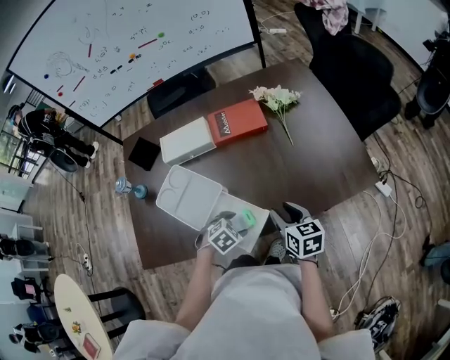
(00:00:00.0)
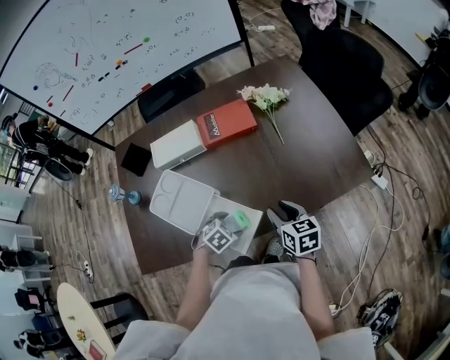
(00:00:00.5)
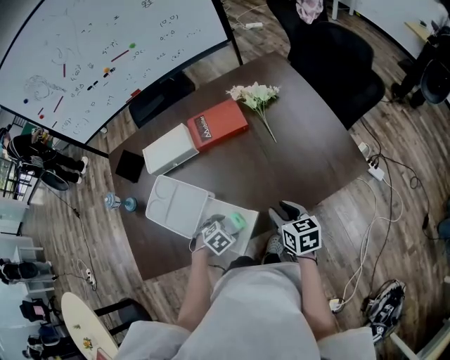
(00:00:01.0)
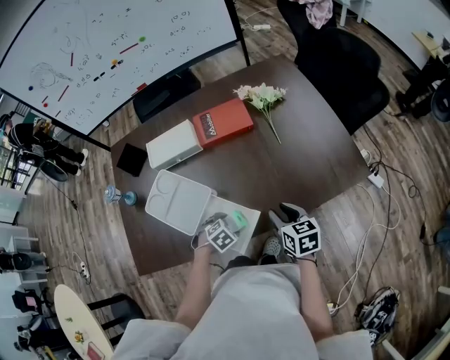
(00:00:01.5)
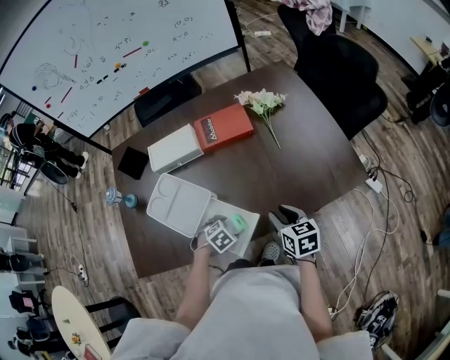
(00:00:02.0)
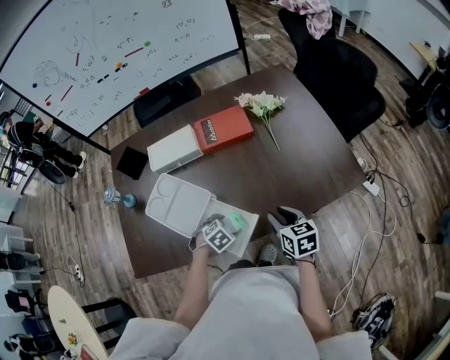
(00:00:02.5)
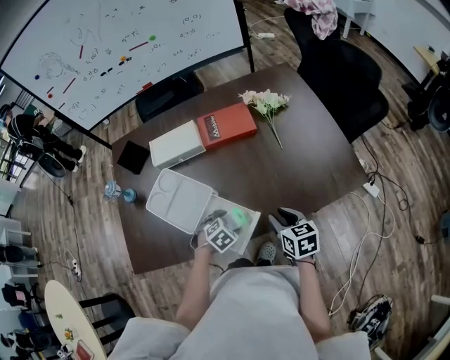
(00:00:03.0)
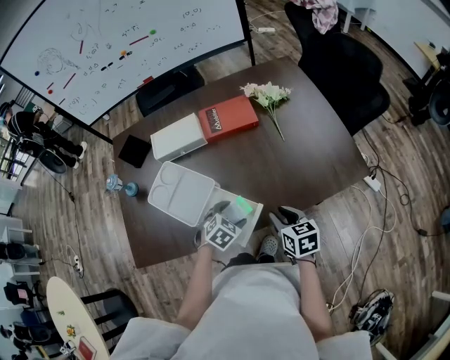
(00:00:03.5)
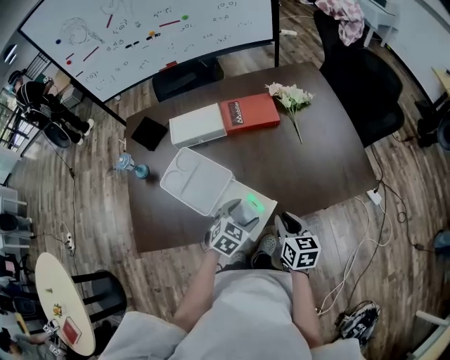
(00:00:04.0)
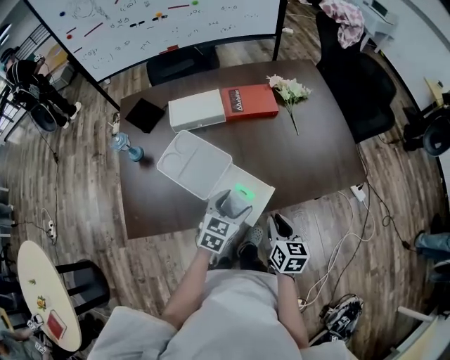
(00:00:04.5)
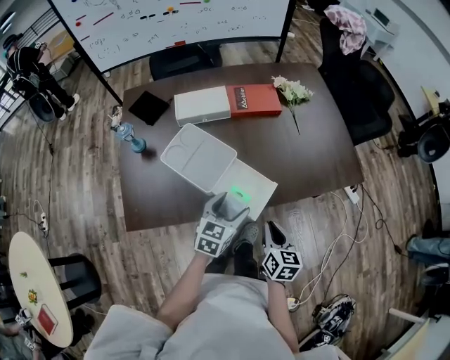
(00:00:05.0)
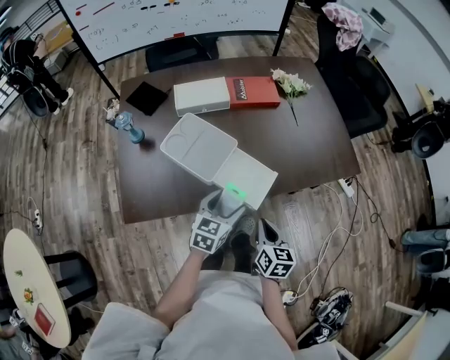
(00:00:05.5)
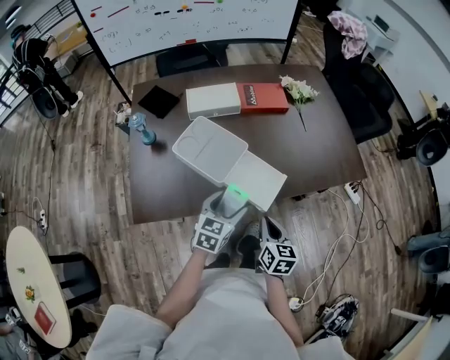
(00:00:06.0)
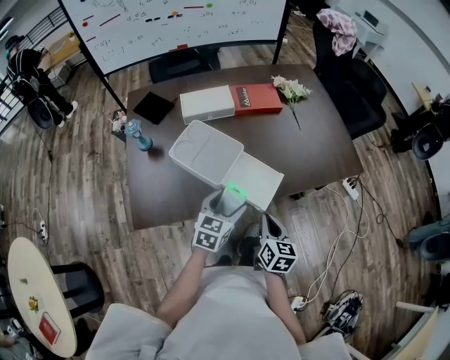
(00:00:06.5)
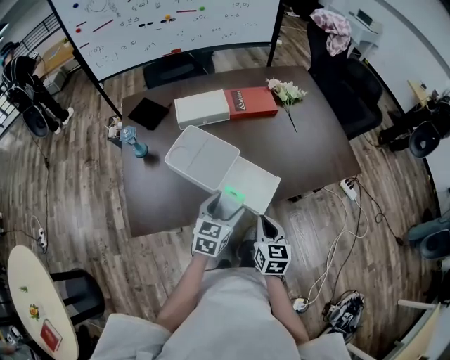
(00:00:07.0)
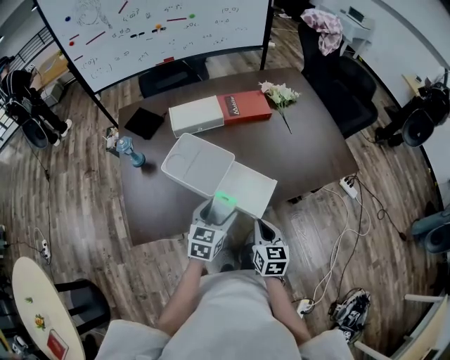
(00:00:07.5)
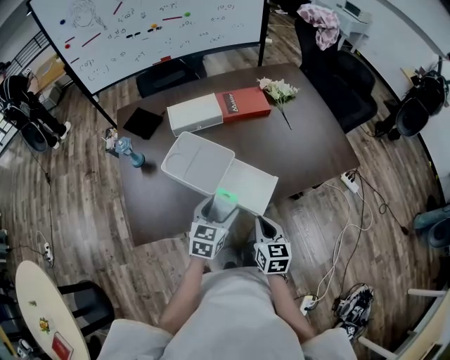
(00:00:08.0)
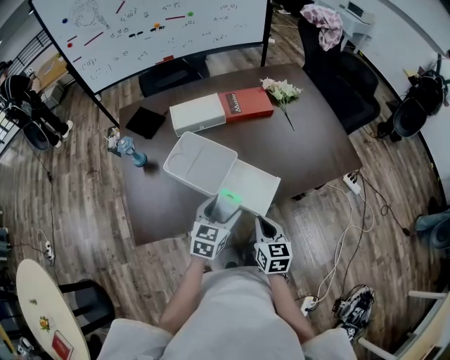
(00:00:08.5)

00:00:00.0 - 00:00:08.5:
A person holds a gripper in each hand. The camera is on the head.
00:00:00.0 - 00:00:02.0: There are only small adjustments of the grippers.
00:00:02.0 - 00:00:04.0: The left gripper moves upward, some 10 cm, and changes its angle by some 30 degrees. Meanwhile the right gripper changes place by about 10 cm.
00:00:04.0 - 00:00:06.5: The right gripper moves backward and to the left, some 15 cm, while the left gripper shifts some 15 cm backward, to the left and upward, and rotates about 30 degrees.
00:00:06.5 - 00:00:08.5: The grippers move only a little.

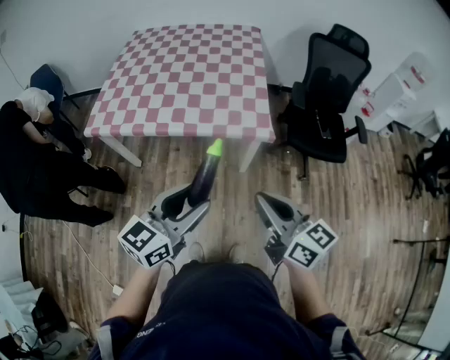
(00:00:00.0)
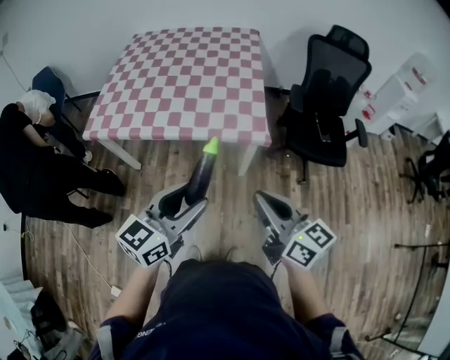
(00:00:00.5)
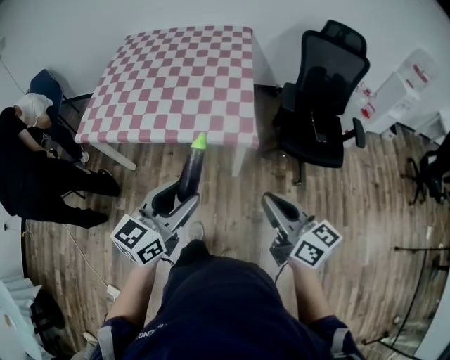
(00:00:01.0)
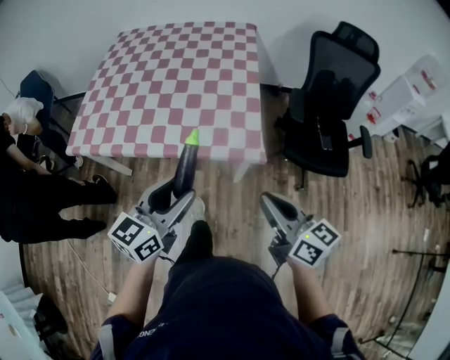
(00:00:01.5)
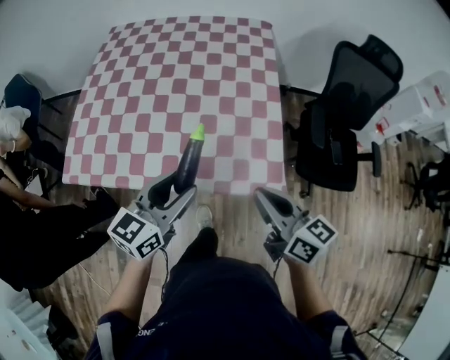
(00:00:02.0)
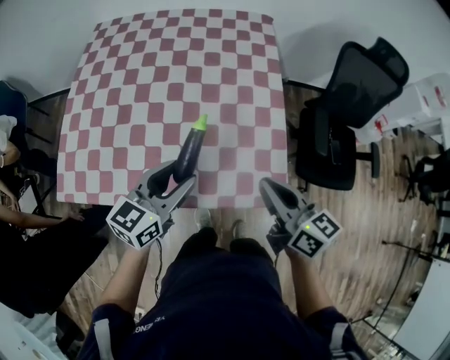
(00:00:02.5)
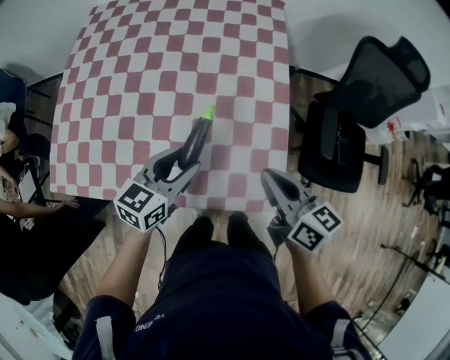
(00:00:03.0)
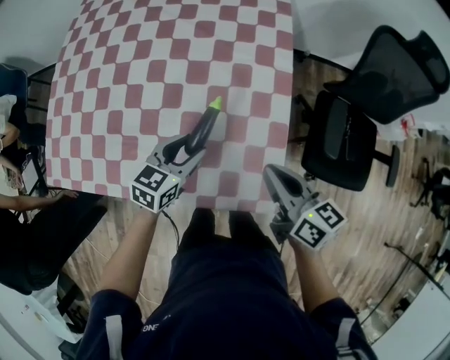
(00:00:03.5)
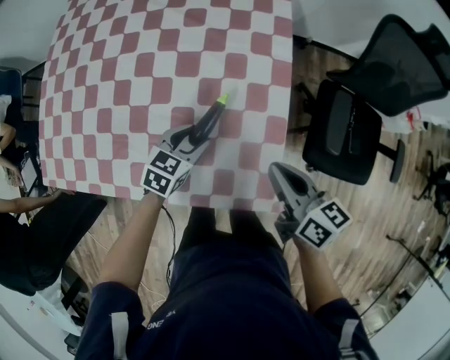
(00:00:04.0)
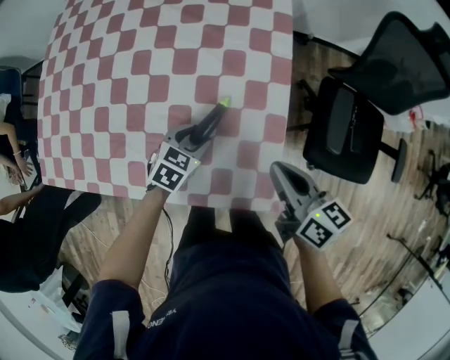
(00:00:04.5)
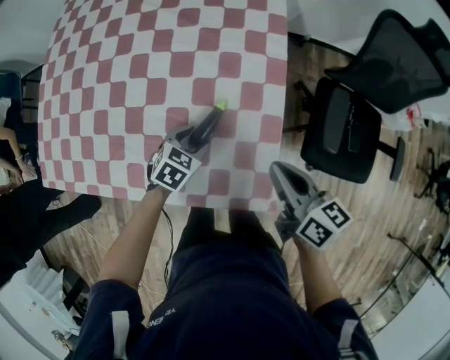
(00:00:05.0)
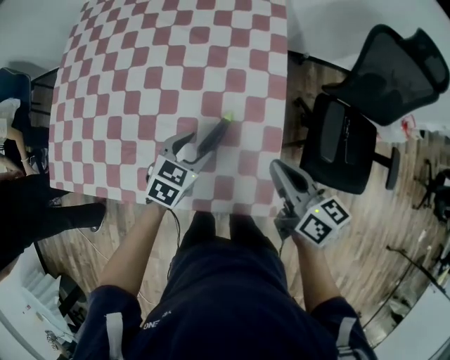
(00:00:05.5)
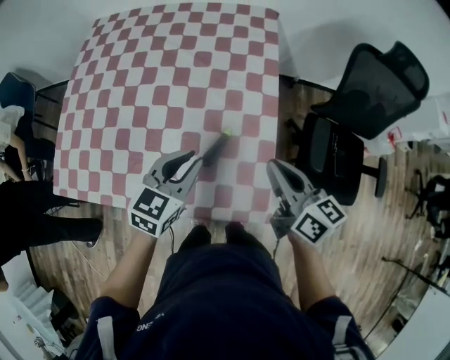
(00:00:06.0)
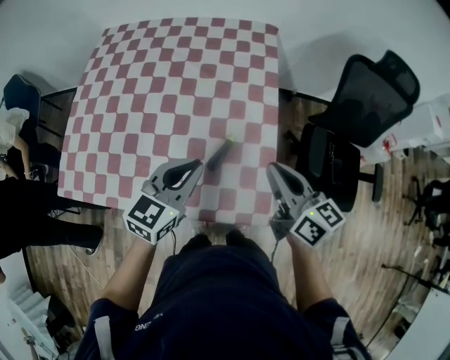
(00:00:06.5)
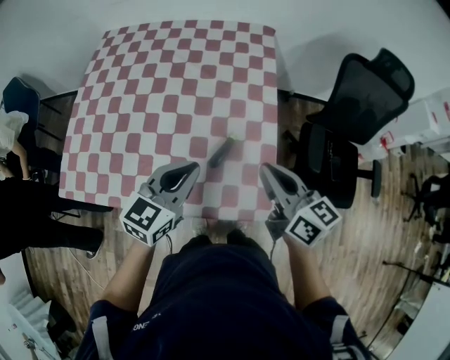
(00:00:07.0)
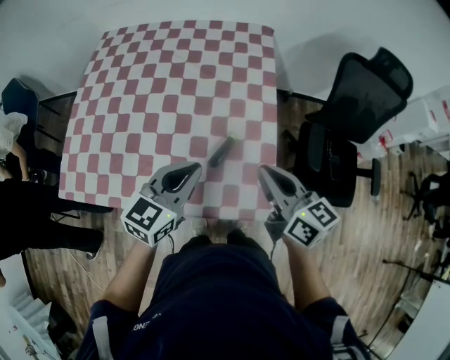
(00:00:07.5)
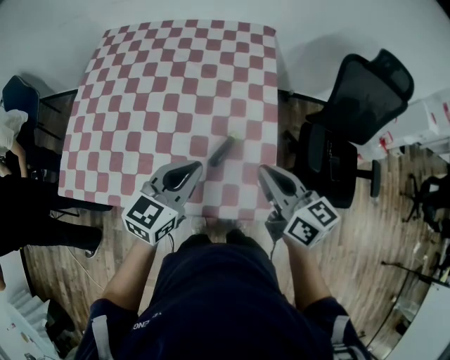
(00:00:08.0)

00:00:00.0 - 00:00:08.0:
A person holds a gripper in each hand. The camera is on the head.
00:00:00.0 - 00:00:02.0: Both grippers travel together forward, about 35 cm.
00:00:02.0 - 00:00:04.0: The right gripper travels forward, downward and to the right by approximately 25 cm; the left gripper travels downward and forward by some 35 cm, and angles its fingers downward, by about 30 degrees.
00:00:04.0 - 00:00:06.0: The right gripper travels upward by some 10 cm; the left gripper travels upward by approximately 20 cm, and closes up.
00:00:06.0 - 00:00:08.0: The left gripper is displaced upward by roughly 5 cm. Meanwhile the right gripper heads to the left, covering roughly 5 cm.

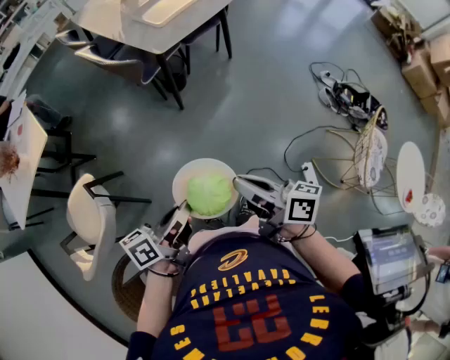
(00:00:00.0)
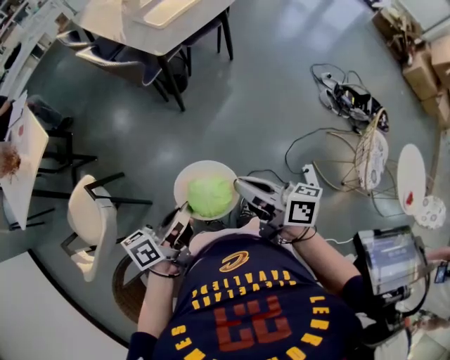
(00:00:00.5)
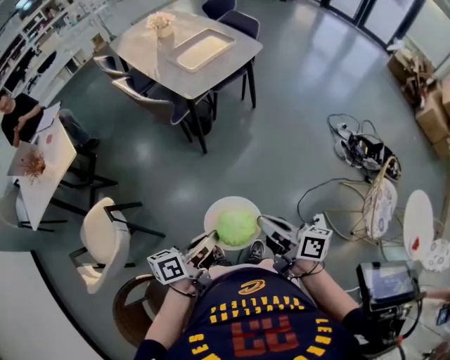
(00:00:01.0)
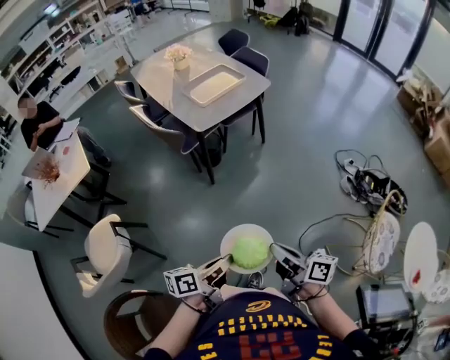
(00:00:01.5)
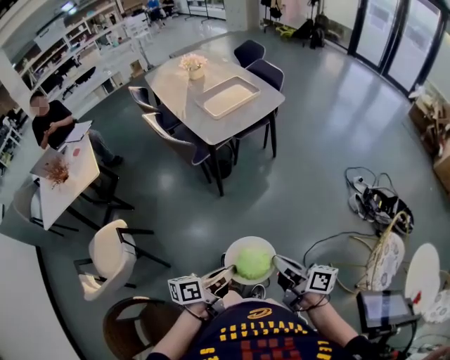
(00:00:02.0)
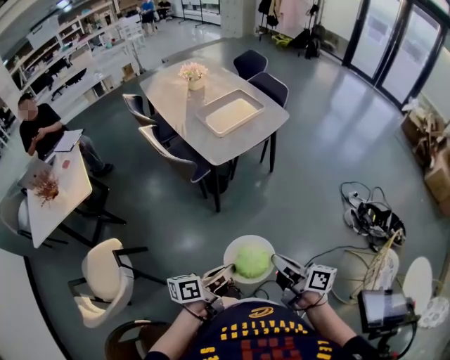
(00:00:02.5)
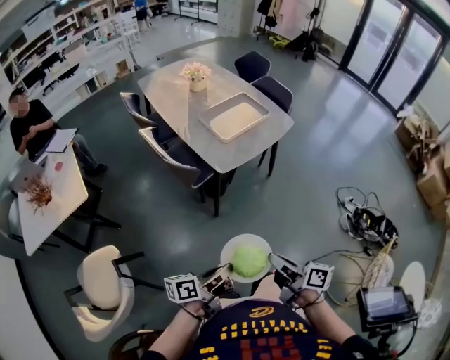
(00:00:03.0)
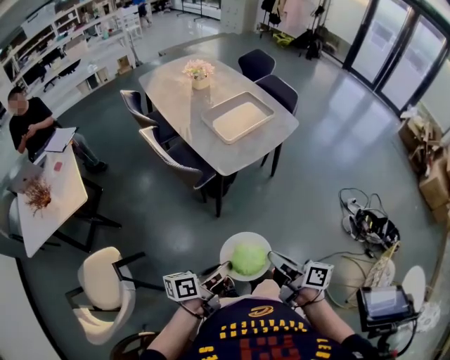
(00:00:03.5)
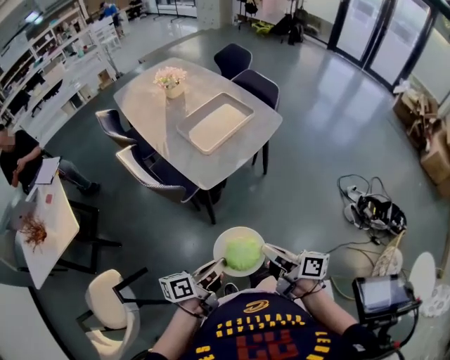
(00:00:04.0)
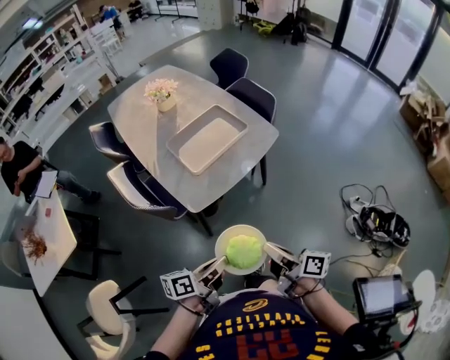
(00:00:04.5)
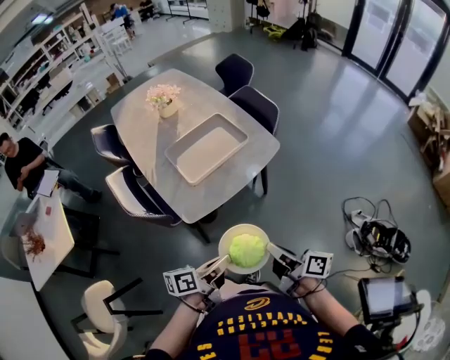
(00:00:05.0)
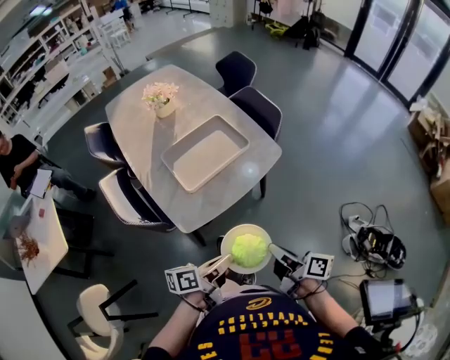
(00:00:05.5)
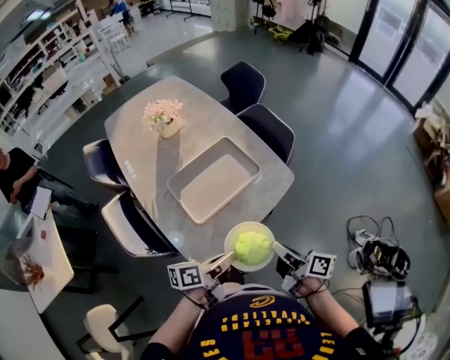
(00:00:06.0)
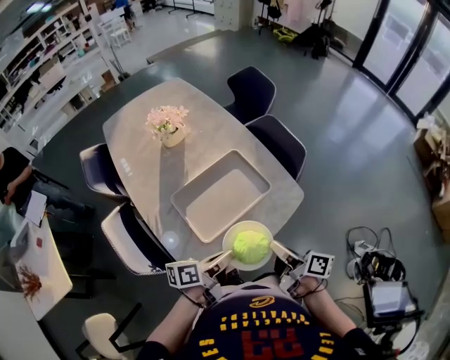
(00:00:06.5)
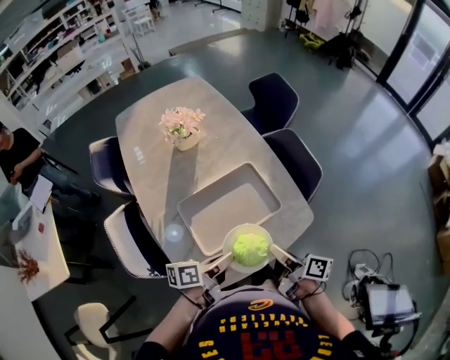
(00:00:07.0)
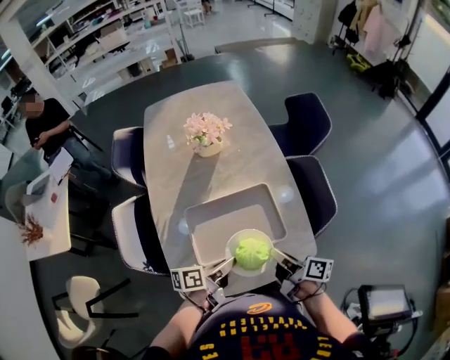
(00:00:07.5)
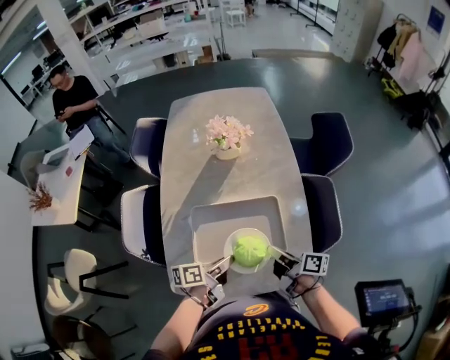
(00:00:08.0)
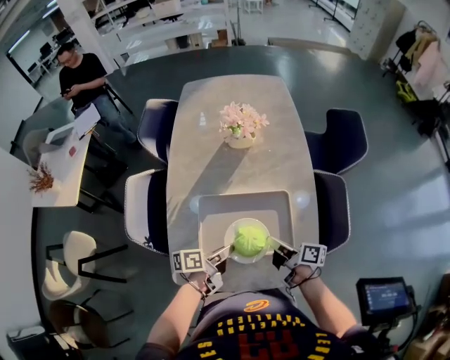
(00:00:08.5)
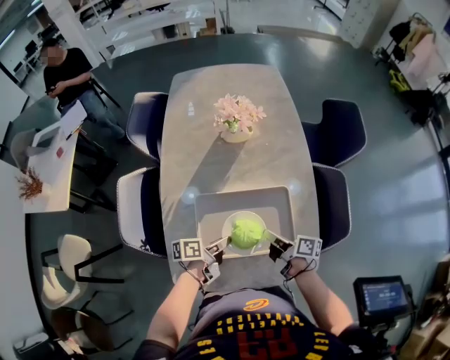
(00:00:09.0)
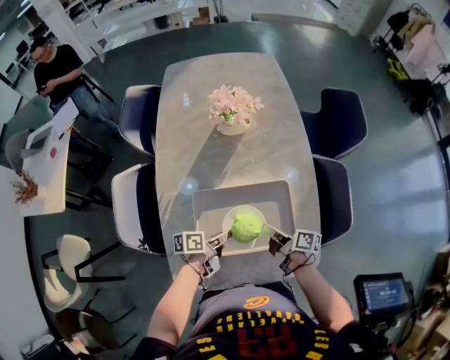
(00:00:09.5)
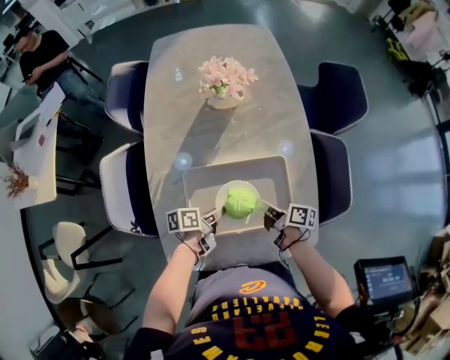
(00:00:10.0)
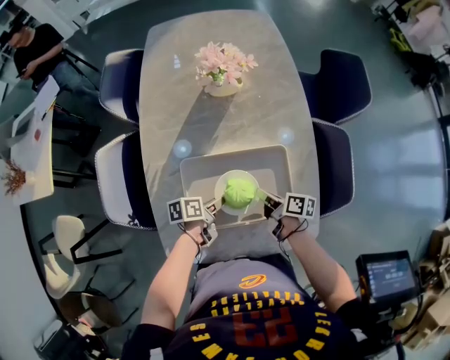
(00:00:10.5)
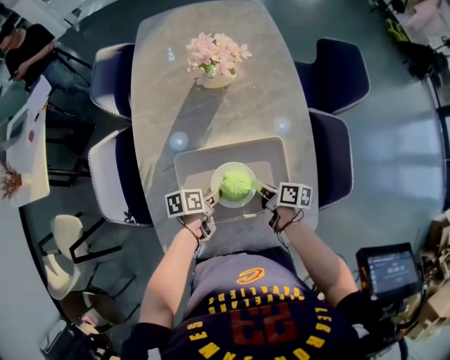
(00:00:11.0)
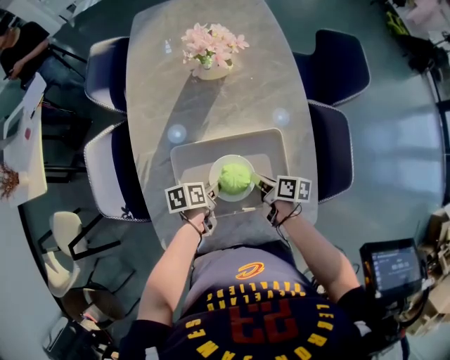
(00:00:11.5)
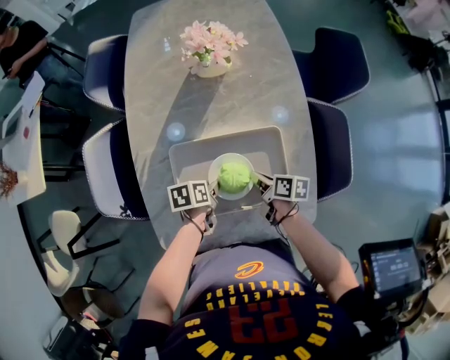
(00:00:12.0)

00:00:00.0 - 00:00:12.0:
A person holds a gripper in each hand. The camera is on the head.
00:00:00.0 - 00:00:02.0: The right gripper shifts by approximately 10 cm.
00:00:02.0 - 00:00:04.0: The right gripper changes place by approximately 30 cm.
00:00:04.0 - 00:00:06.0: The right gripper changes place by some 35 cm.
00:00:06.0 - 00:00:08.0: The right gripper moves roughly 30 cm, and rotates about 40 degrees.
00:00:08.0 - 00:00:10.0: The right gripper shifts approximately 15 cm downward.
